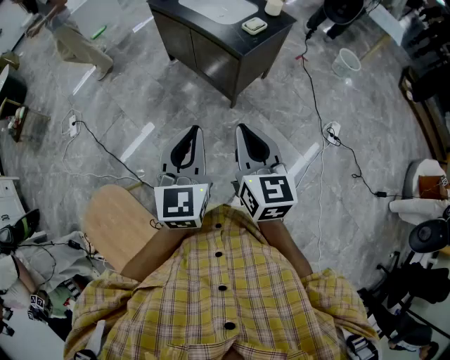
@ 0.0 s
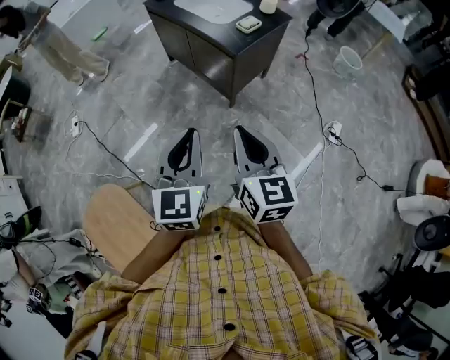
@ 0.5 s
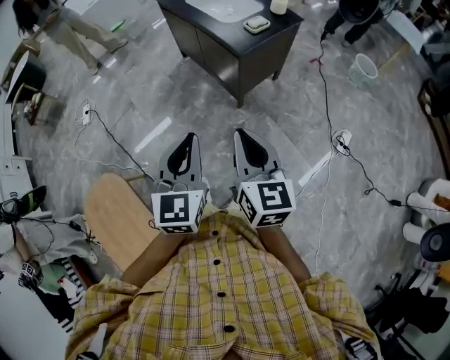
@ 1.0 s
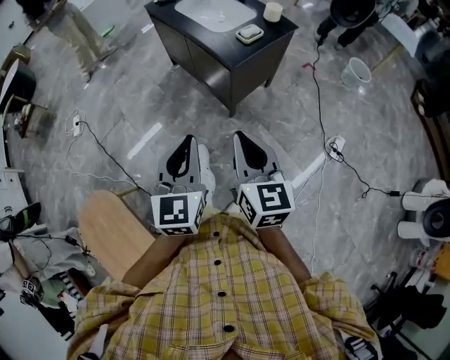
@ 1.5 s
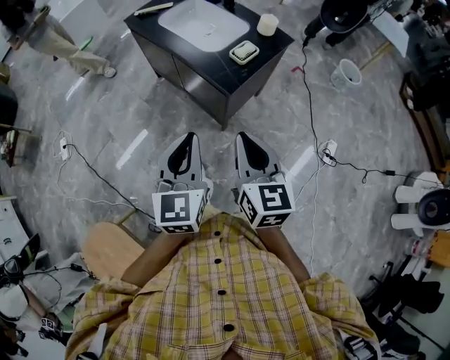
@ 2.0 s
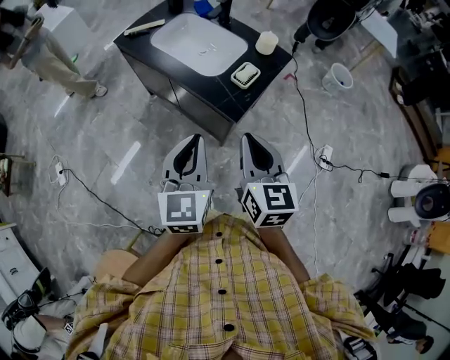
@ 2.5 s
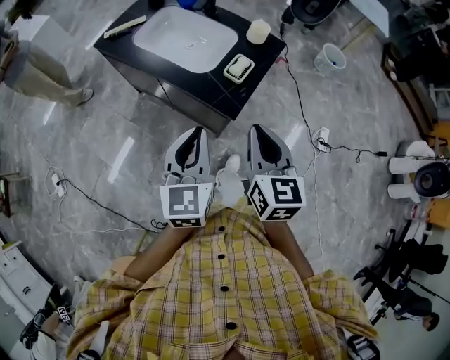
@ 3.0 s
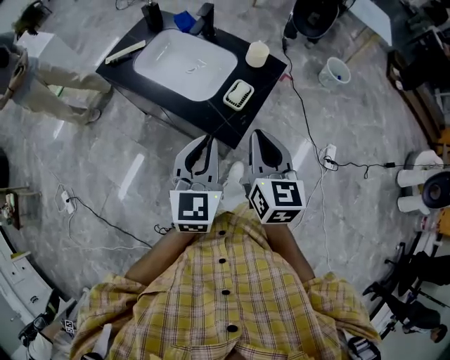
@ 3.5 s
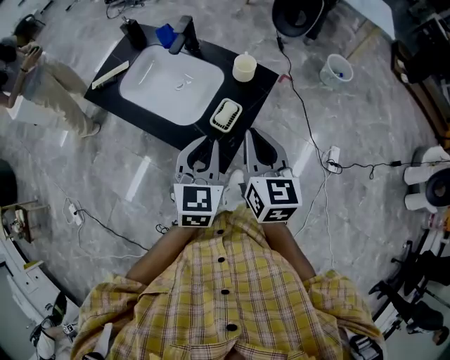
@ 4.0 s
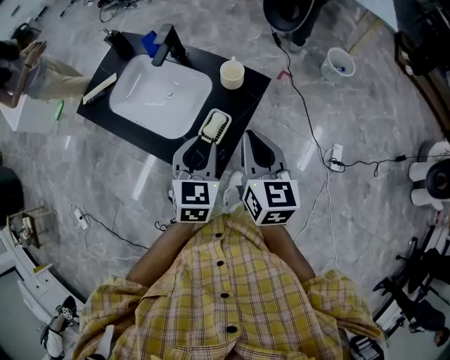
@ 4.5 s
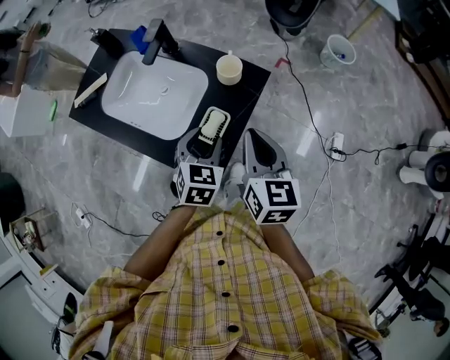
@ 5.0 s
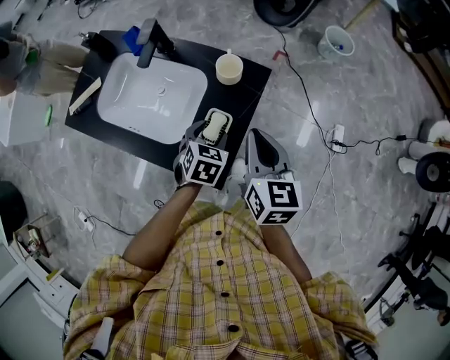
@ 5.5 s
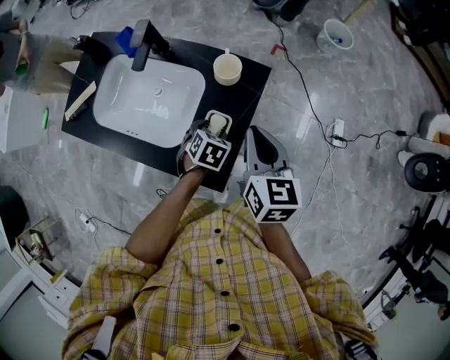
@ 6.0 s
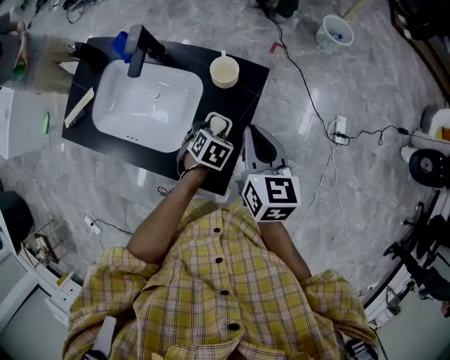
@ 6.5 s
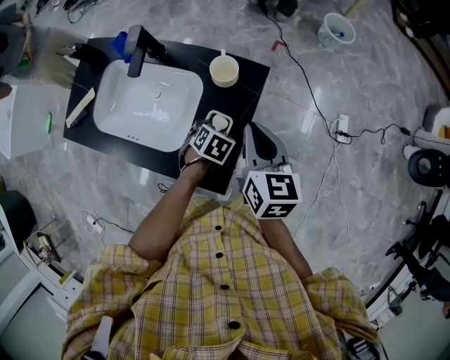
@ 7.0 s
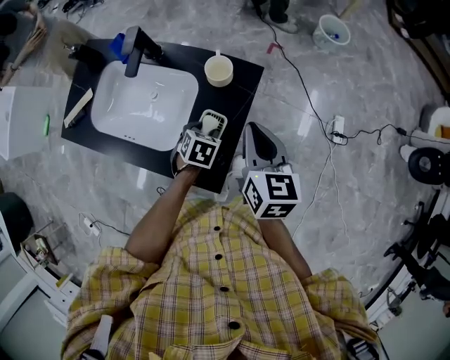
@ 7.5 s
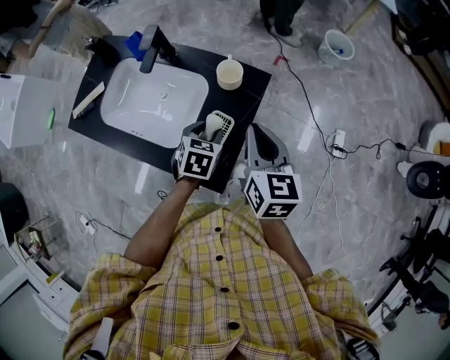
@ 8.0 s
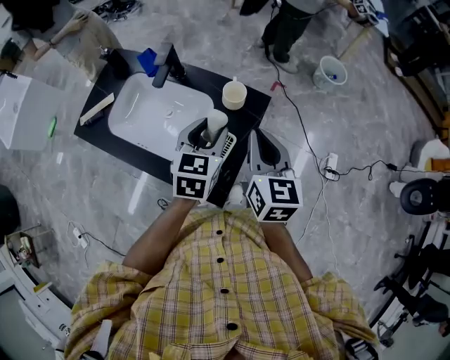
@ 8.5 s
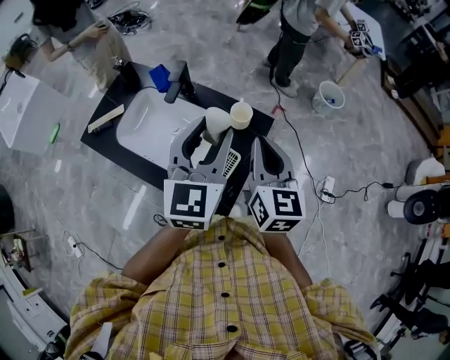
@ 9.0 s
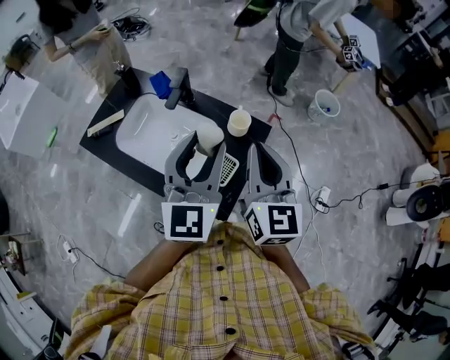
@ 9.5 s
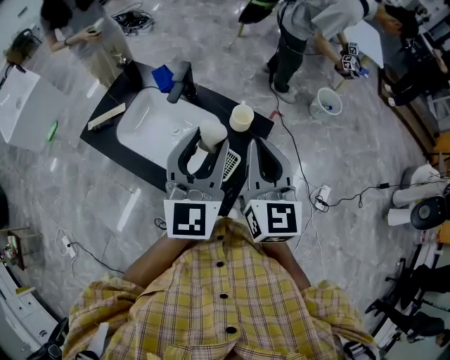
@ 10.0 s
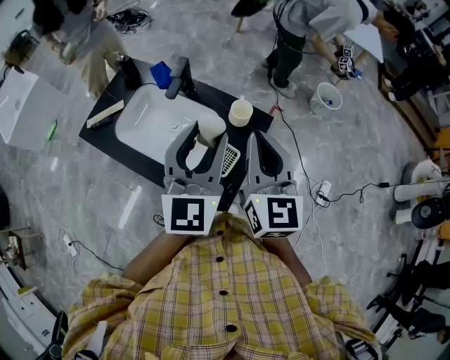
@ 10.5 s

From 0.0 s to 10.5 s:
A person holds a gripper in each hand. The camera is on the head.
From 0.0 s to 2.0 s: Both grippers move forward, approximately 20 cm.
From 2.0 s to 4.0 s: The two grippers go roughly 35 cm forward. The left gripper swivels roughly 30 degrees.
From 4.0 s to 6.5 s: The right gripper is displaced forward and downward by about 15 cm, while the left gripper shifts some 30 cm downward and forward, angles its fingers downward, by some 50 degrees, and opens its fingers.
From 6.5 s to 8.5 s: The left gripper is displaced upward by some 25 cm, and points its fingers some 40 degrees further upward; the right gripper is displaced upward by about 10 cm.
From 8.5 s to 10.5 s: The right gripper travels upward and to the left by roughly 10 cm. Meanwhile the left gripper goes roughly 15 cm upward, and tips its fingers upward by approximately 30 degrees.

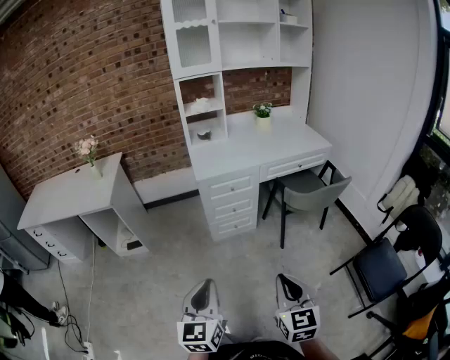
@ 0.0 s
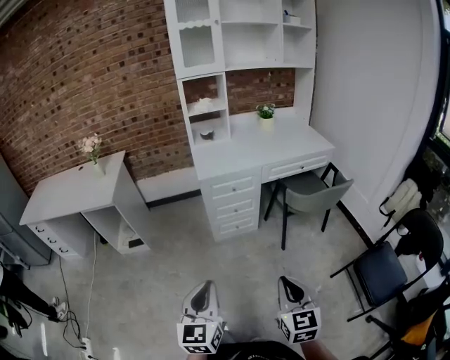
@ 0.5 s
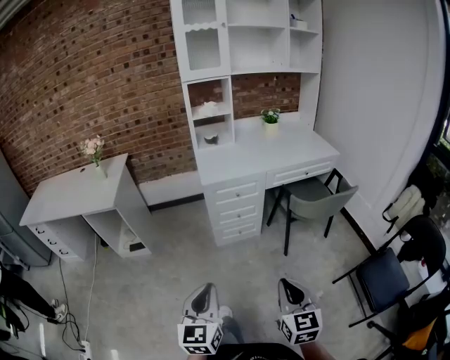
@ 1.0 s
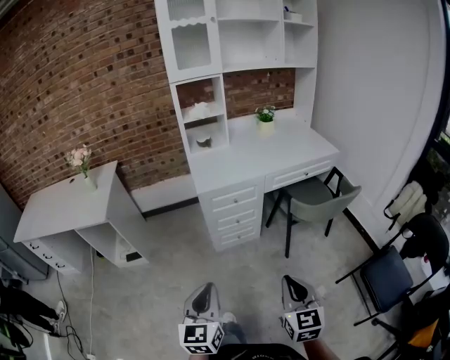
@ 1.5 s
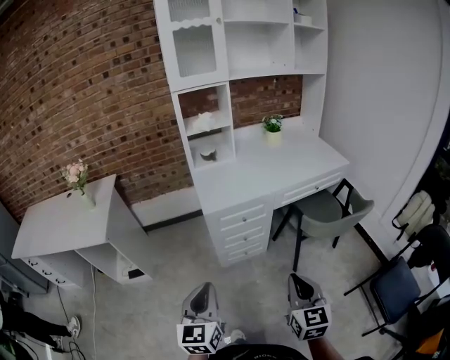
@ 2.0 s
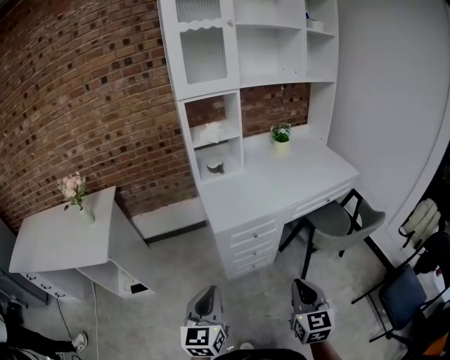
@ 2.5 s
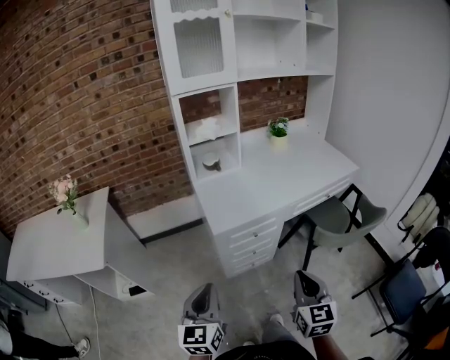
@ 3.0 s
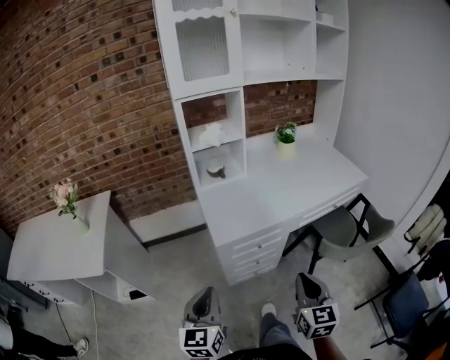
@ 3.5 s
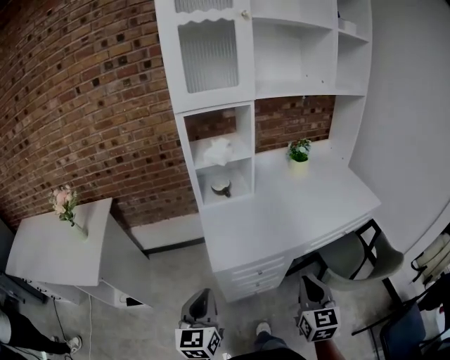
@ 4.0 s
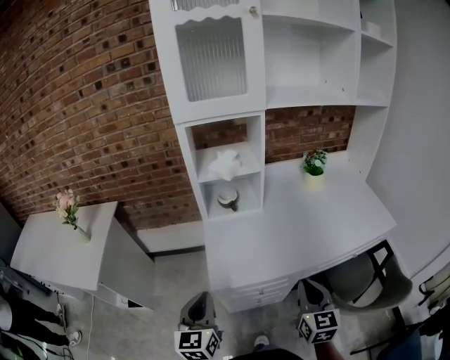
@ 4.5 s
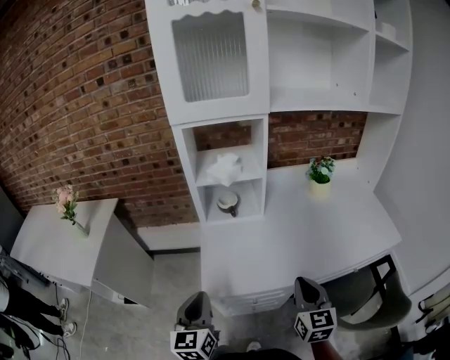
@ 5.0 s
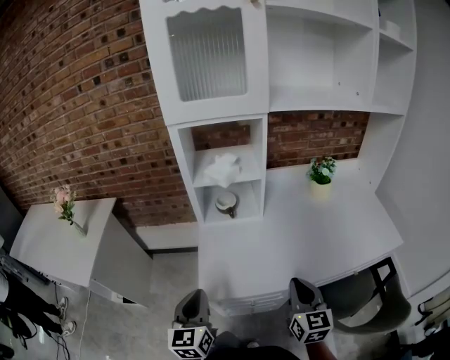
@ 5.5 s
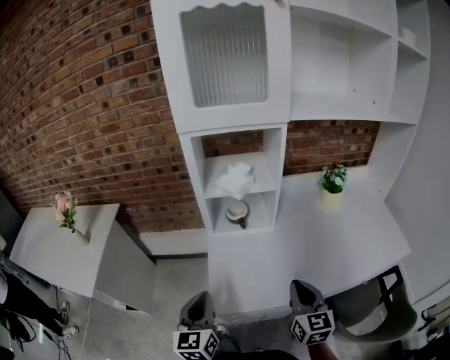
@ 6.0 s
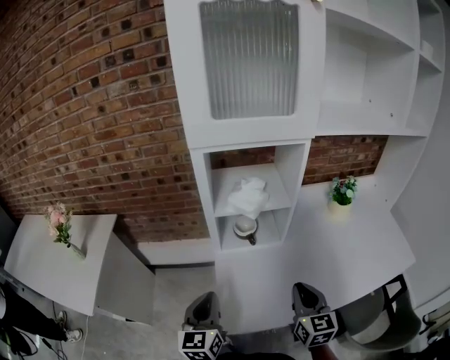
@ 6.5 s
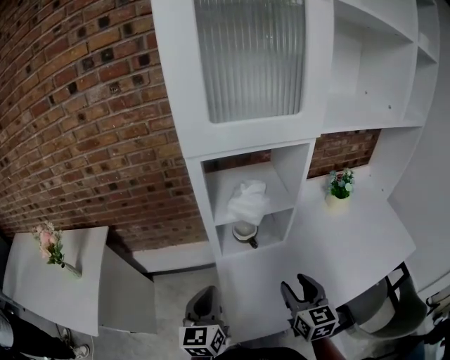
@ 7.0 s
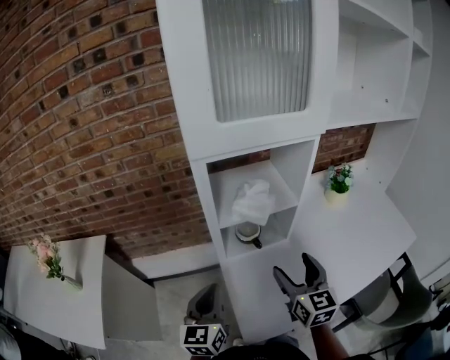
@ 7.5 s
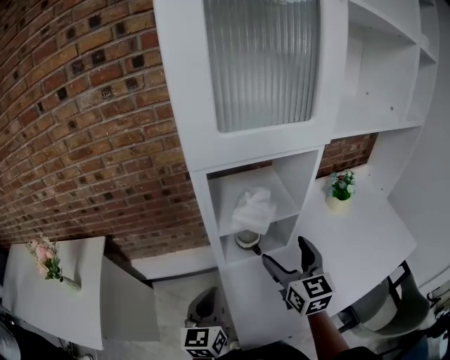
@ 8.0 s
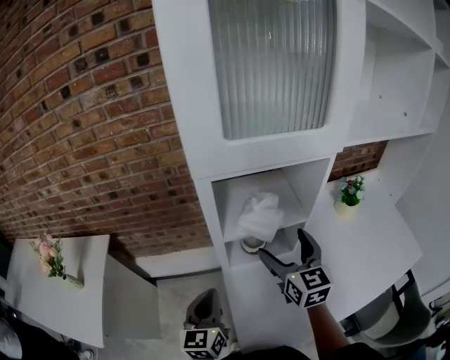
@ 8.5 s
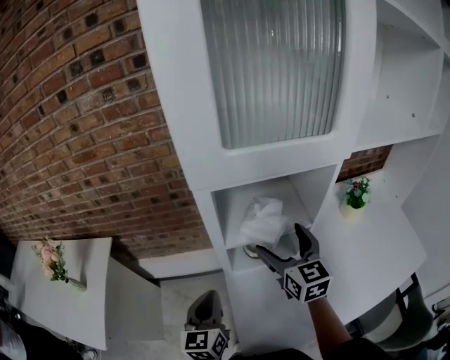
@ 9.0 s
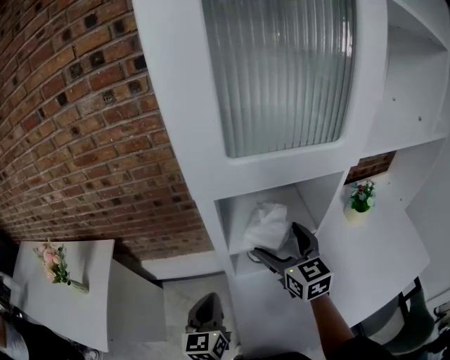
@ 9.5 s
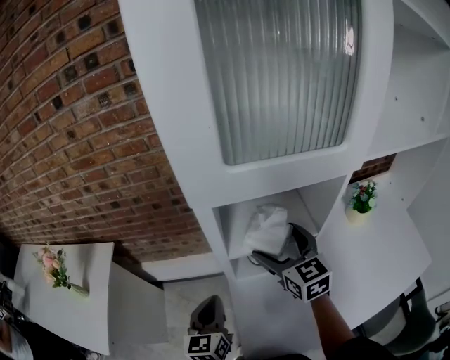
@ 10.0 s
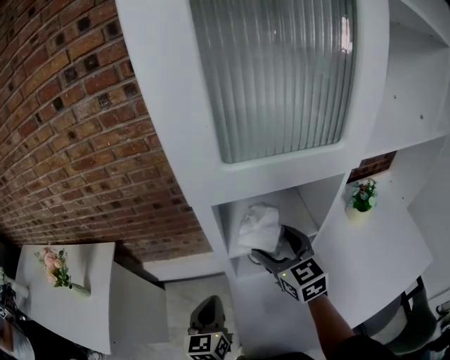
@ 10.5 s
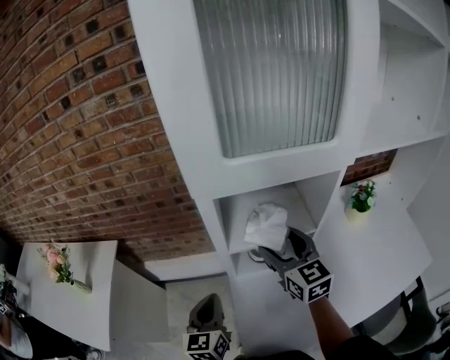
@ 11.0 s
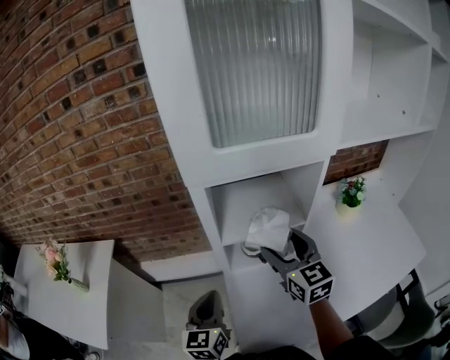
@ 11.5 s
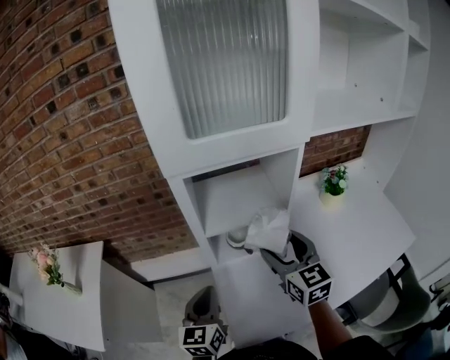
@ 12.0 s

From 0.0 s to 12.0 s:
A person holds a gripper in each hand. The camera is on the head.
From 0.0 s to 2.0 s: The grippers both shift forward by approximately 20 cm.
From 2.0 s to 4.0 s: The two grippers go some 30 cm forward.
From 4.0 s to 6.0 s: The grippers both shift forward by some 20 cm.
From 6.0 s to 8.0 s: The right gripper shifts some 25 cm forward, to the left and upward, and opens its fingers. Meanwhile the left gripper goes some 15 cm forward.
From 8.0 s to 10.0 s: The right gripper goes some 10 cm forward. The left gripper heads forward, covering roughly 5 cm.
From 10.0 s to 12.0 s: The right gripper travels backward by roughly 10 cm, while the left gripper travels backward by about 5 cm.

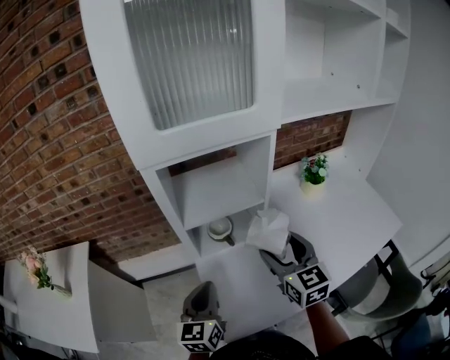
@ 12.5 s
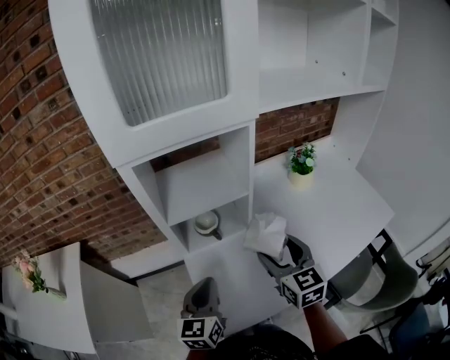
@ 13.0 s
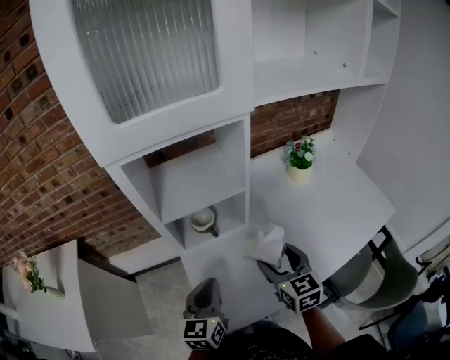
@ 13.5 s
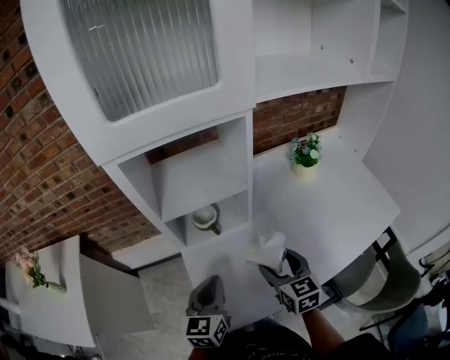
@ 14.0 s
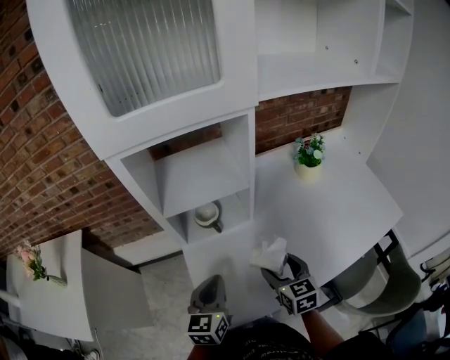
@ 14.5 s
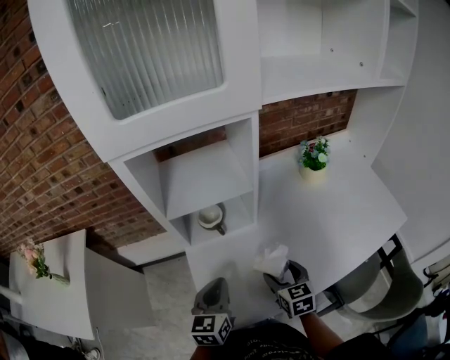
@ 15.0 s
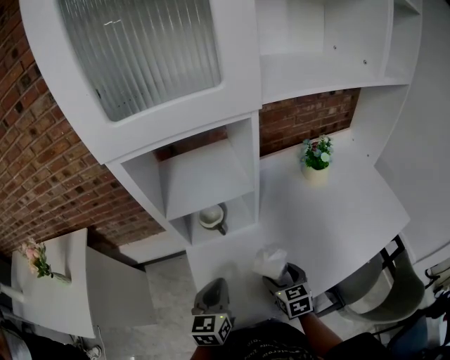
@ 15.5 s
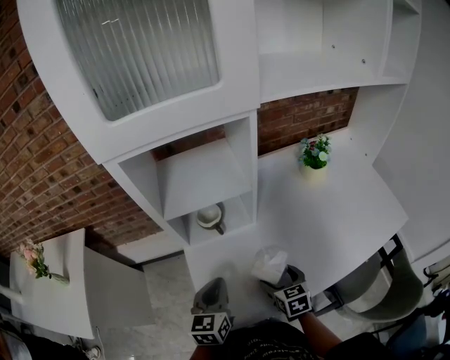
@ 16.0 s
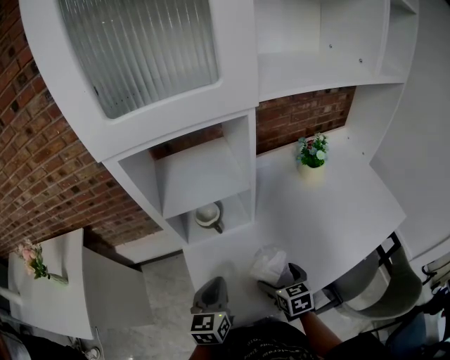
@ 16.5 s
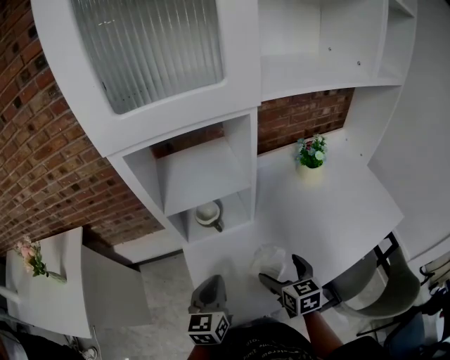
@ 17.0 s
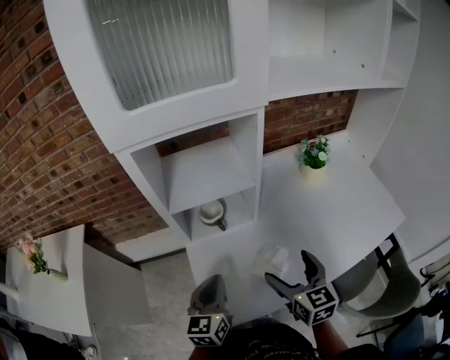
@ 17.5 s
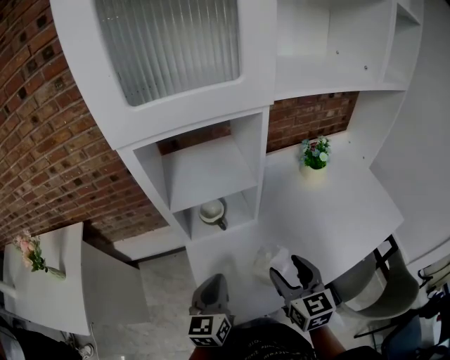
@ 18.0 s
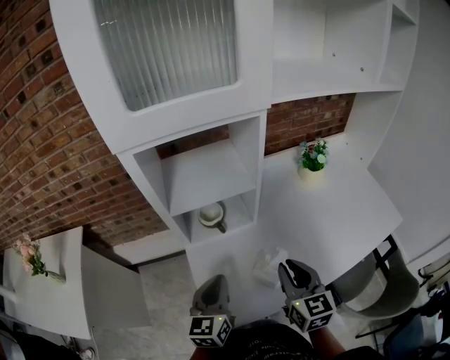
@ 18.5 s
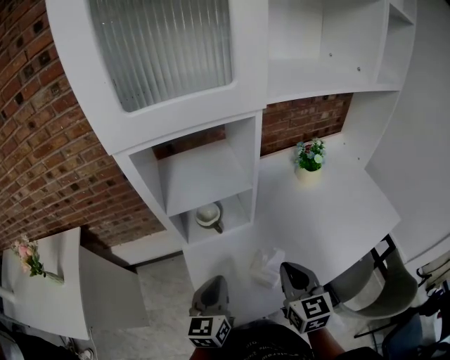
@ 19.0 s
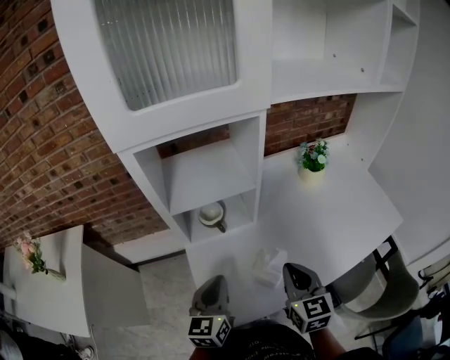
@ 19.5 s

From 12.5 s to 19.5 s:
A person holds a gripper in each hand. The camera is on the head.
From 12.5 s to 14.5 s: The left gripper heads to the right, covering some 5 cm. The right gripper goes some 15 cm downward.
From 14.5 s to 16.0 s: The right gripper goes roughly 10 cm downward.
From 16.0 s to 17.5 s: The right gripper shifts roughly 15 cm upward, and changes its angle by roughly 20 degrees.
From 17.5 s to 19.5 s: The right gripper closes its fingers.
